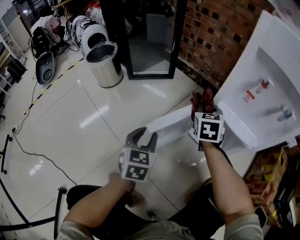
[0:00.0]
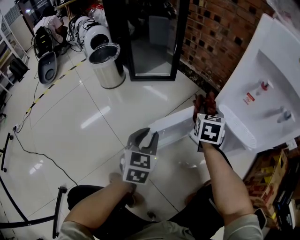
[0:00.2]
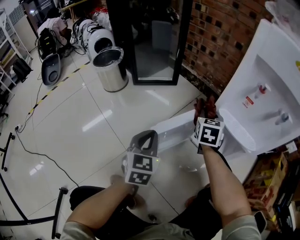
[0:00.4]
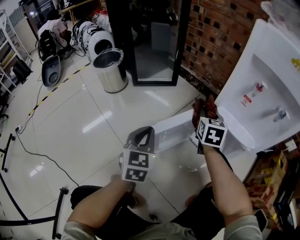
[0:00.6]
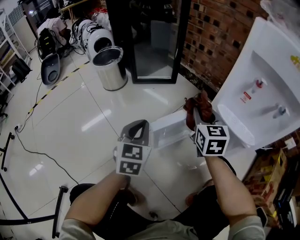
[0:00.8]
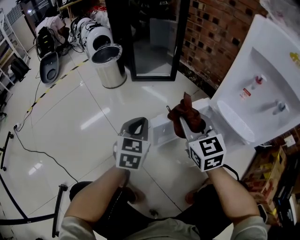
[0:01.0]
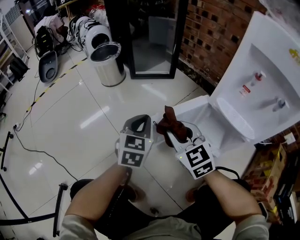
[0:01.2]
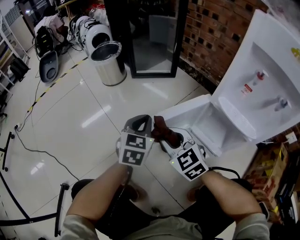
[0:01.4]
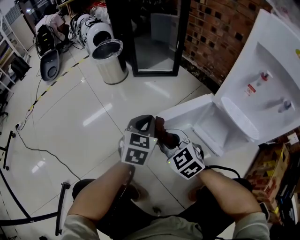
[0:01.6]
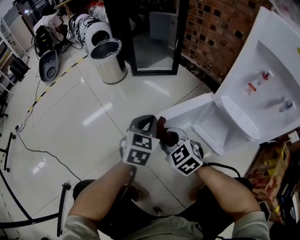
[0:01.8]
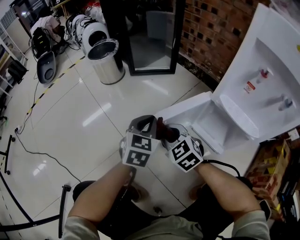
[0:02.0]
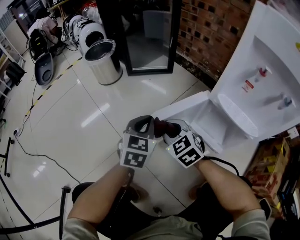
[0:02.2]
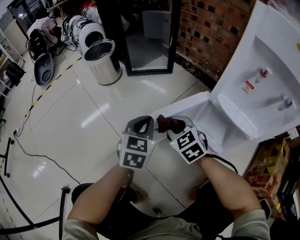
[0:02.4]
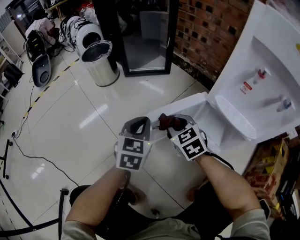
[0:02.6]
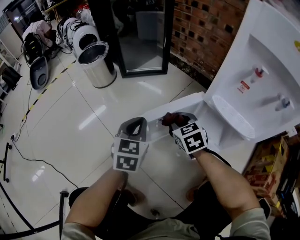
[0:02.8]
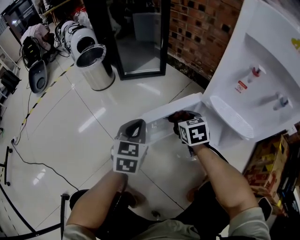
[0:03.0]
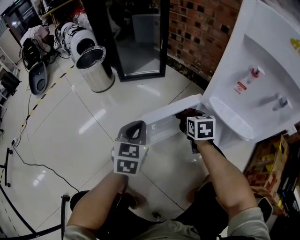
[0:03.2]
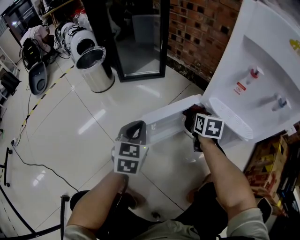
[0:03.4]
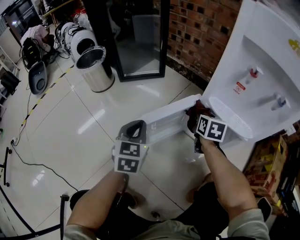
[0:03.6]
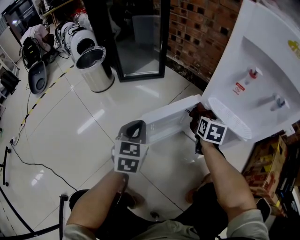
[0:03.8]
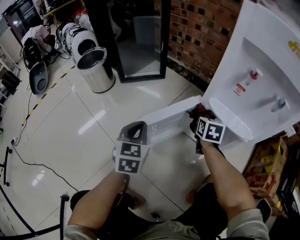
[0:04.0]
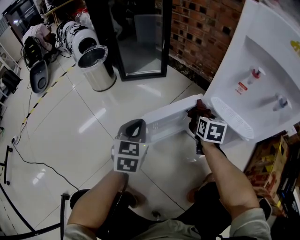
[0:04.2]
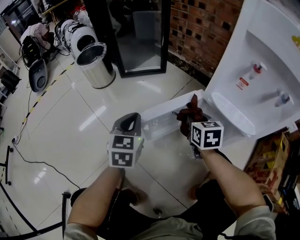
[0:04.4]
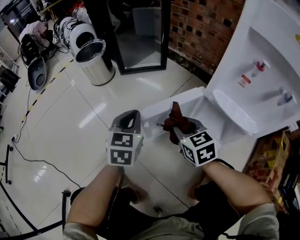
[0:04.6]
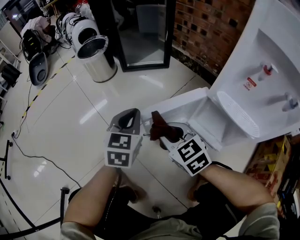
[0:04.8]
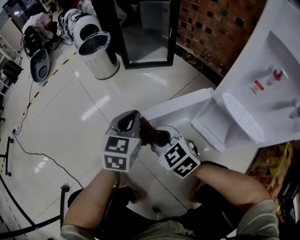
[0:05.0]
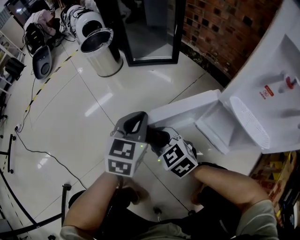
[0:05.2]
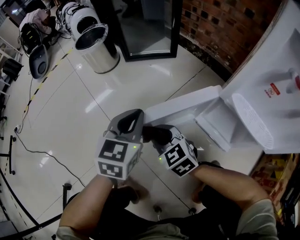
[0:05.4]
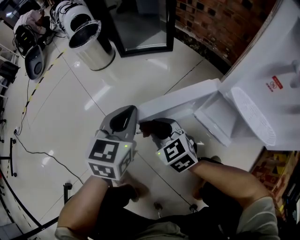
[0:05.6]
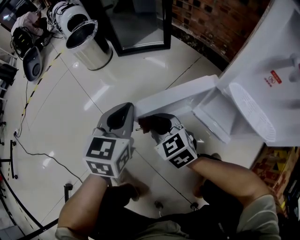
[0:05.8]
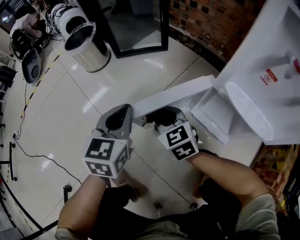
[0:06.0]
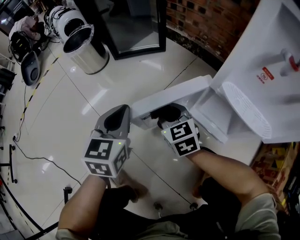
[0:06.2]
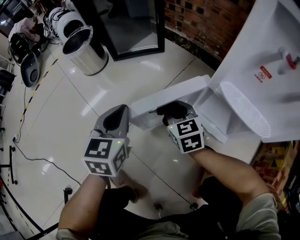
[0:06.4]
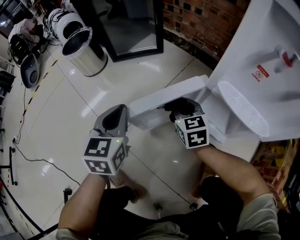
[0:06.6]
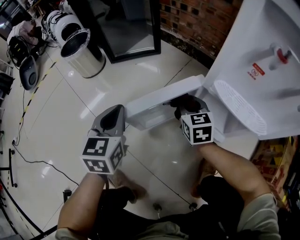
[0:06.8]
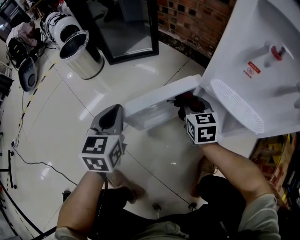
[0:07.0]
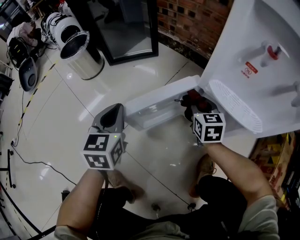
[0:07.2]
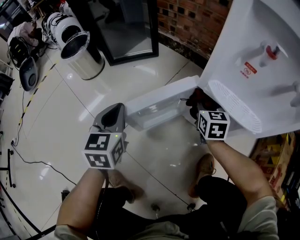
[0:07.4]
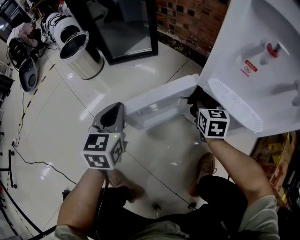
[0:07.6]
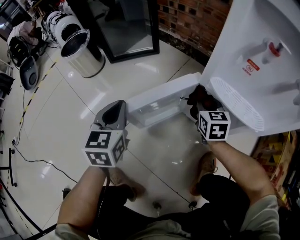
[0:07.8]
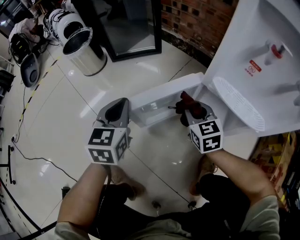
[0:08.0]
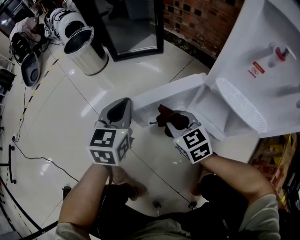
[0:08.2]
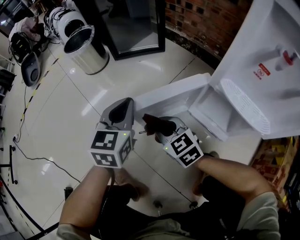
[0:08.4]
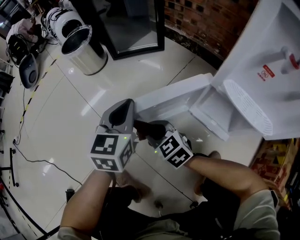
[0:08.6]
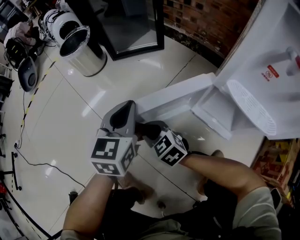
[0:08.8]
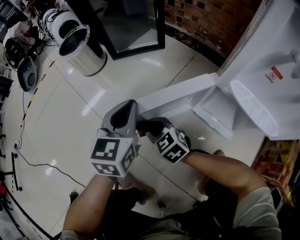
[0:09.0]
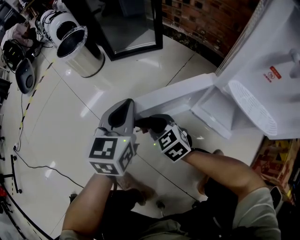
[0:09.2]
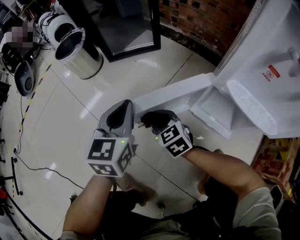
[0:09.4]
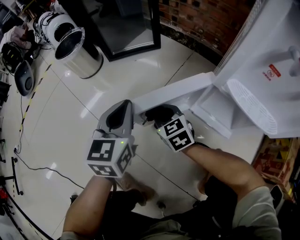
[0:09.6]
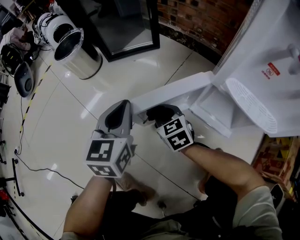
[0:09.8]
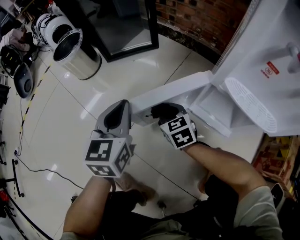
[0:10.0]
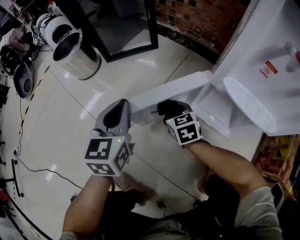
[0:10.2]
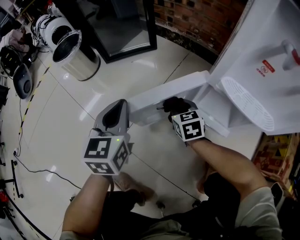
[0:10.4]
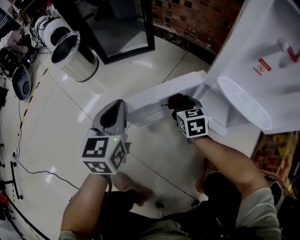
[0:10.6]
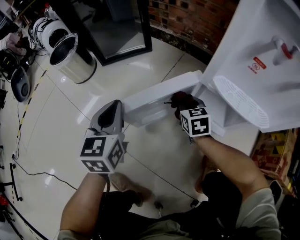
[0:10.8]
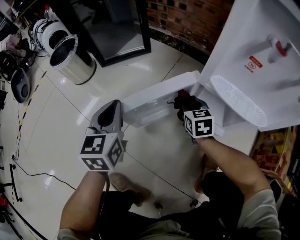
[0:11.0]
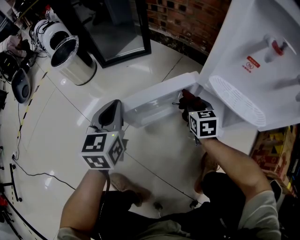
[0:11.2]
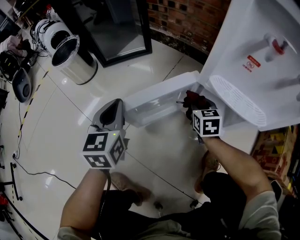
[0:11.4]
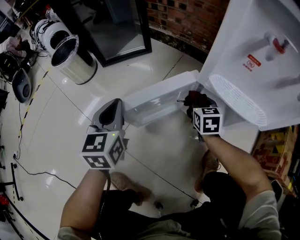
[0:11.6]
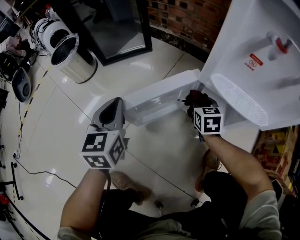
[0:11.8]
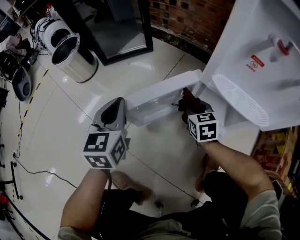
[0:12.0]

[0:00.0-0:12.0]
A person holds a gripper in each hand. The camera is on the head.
0:00.0 to 0:01.6: The right gripper ends up approximately 25 cm from where it was, and turns by some 50 degrees. Meanwhile the left gripper closes its fingers.
0:01.6 to 0:03.0: The right gripper goes roughly 20 cm to the right and forward, and swivels roughly 40 degrees.
0:03.0 to 0:04.4: The right gripper travels to the right and back again, some 10 cm each way.
0:04.4 to 0:06.0: The right gripper goes approximately 15 cm to the left, and swivels about 30 degrees.
0:06.0 to 0:07.6: The right gripper travels to the right by approximately 25 cm, and rotates approximately 40 degrees.
0:07.6 to 0:09.0: The right gripper travels to the left by roughly 30 cm, and rotates roughly 50 degrees.
0:09.0 to 0:10.4: The right gripper goes approximately 15 cm to the right, and turns by some 30 degrees.
0:10.4 to 0:12.0: The right gripper is displaced to the right by roughly 10 cm.

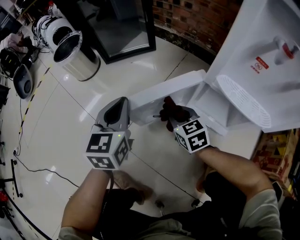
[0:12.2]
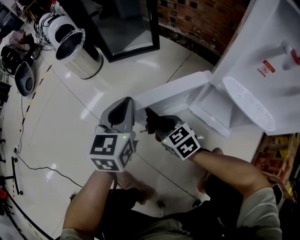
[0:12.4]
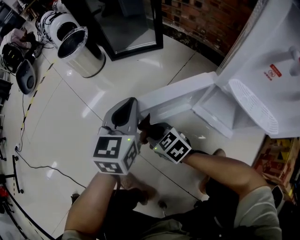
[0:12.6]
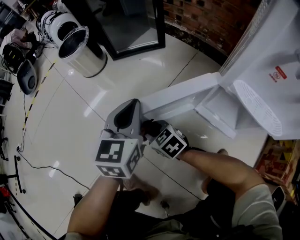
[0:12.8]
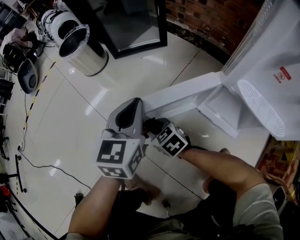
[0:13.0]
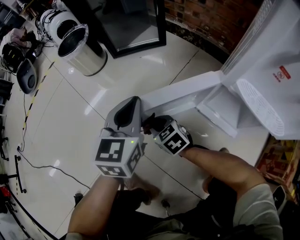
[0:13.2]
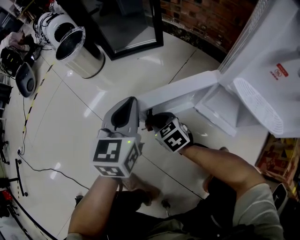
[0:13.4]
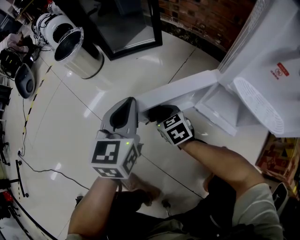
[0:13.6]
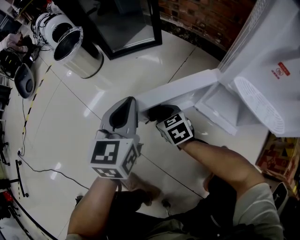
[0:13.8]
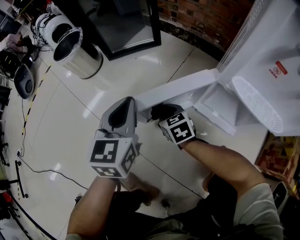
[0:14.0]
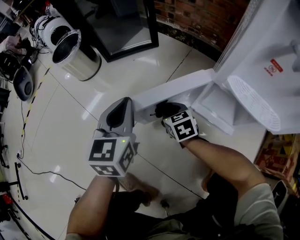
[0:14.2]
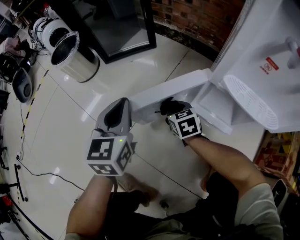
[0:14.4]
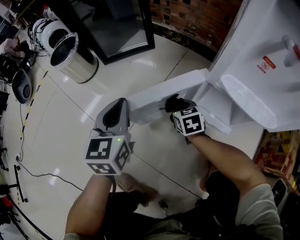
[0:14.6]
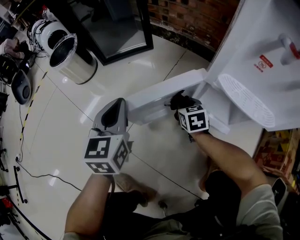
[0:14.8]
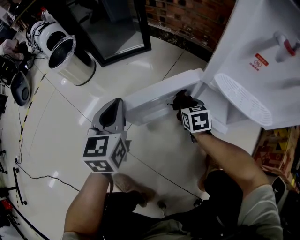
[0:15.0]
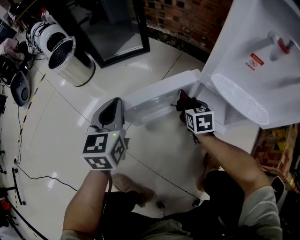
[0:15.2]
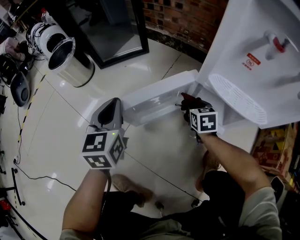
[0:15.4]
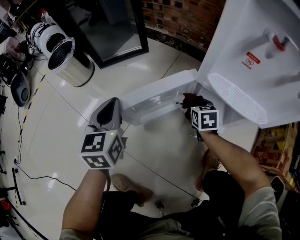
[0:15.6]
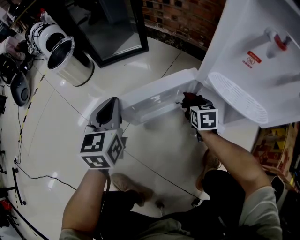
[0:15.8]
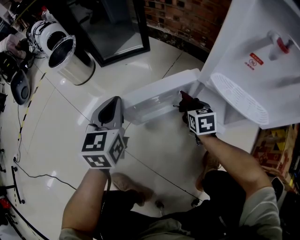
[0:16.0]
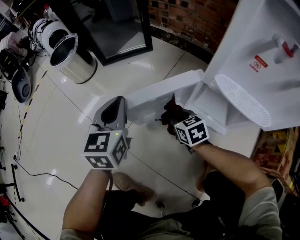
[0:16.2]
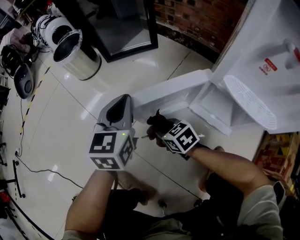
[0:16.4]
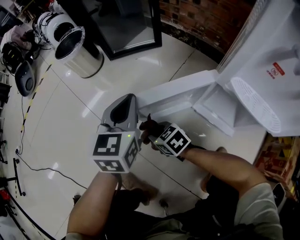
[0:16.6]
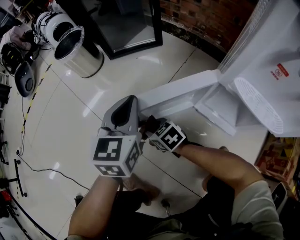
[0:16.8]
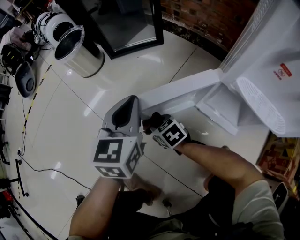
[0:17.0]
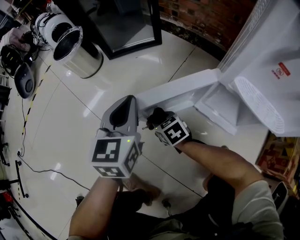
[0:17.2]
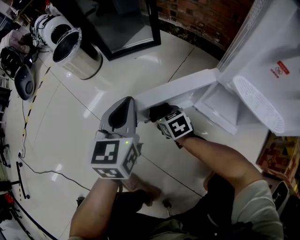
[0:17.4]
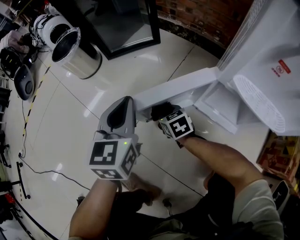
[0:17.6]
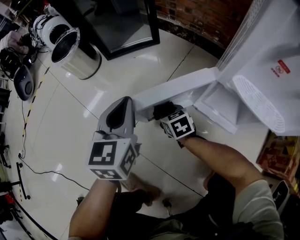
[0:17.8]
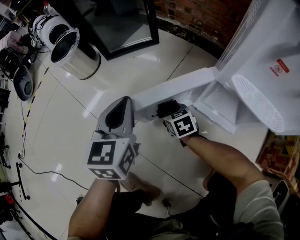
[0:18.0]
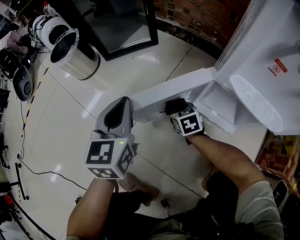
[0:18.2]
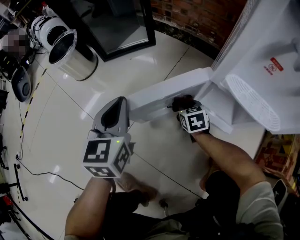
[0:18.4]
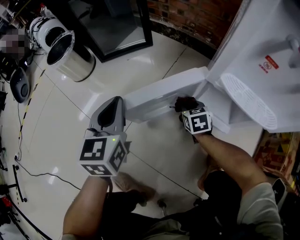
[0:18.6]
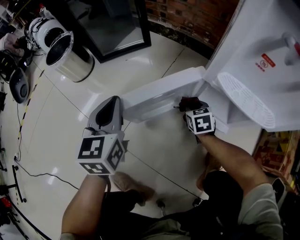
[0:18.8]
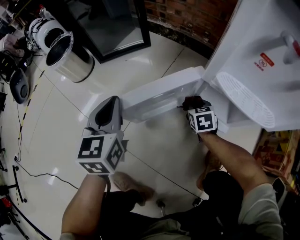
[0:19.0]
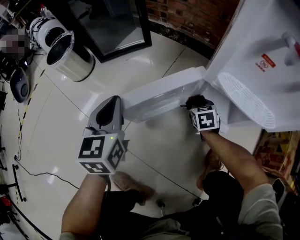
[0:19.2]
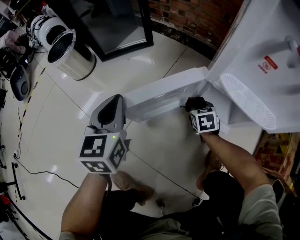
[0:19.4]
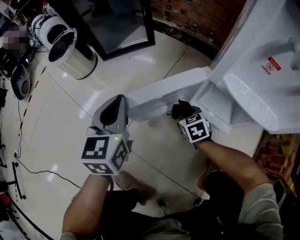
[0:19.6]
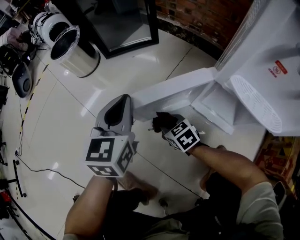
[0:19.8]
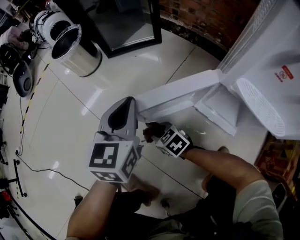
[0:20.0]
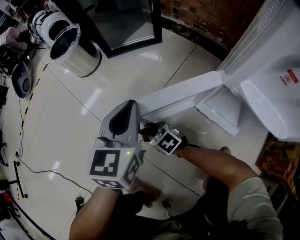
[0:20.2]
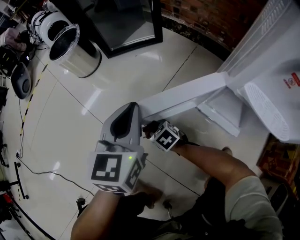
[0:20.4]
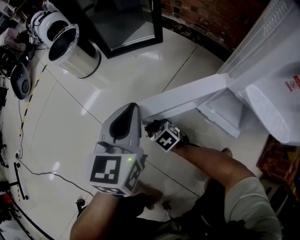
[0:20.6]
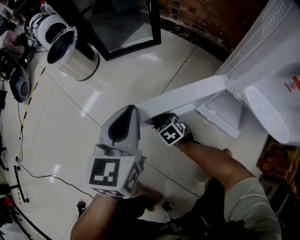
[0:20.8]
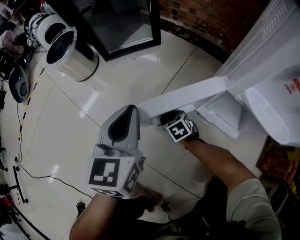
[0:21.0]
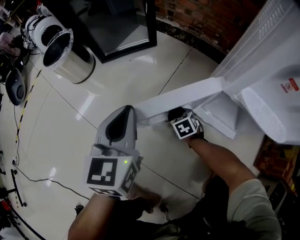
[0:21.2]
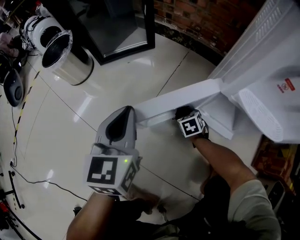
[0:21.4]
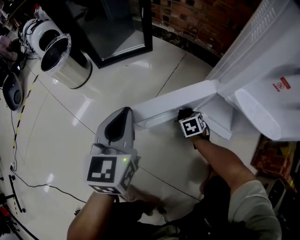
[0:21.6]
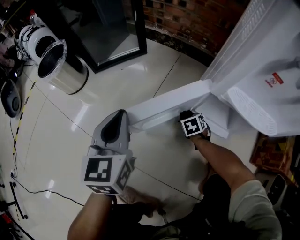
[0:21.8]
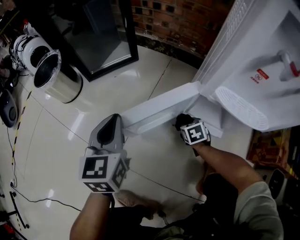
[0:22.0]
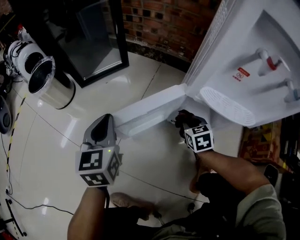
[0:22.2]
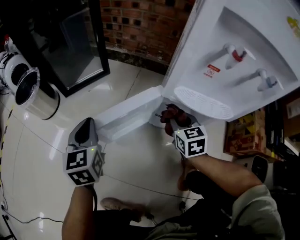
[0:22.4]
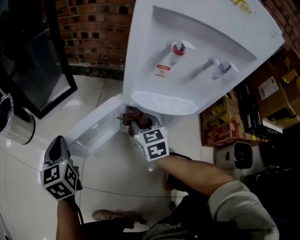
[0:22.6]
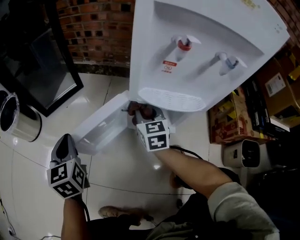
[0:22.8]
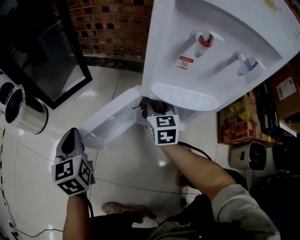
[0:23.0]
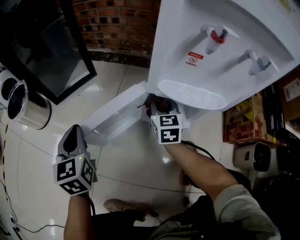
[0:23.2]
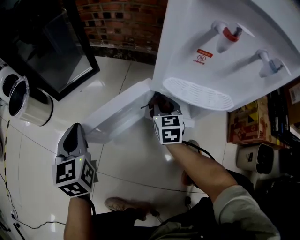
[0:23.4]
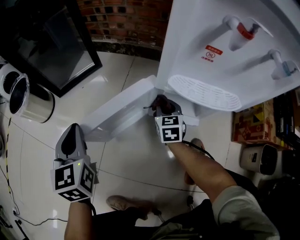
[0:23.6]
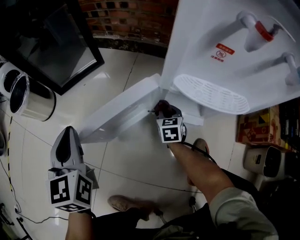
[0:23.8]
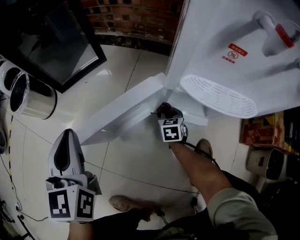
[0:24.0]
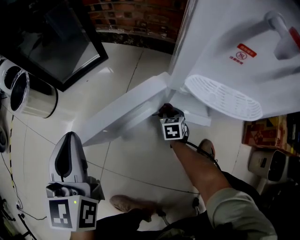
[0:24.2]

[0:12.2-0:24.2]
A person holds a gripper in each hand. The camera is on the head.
0:12.2 to 0:13.8: The right gripper moves to the left and downward, approximately 10 cm.
0:13.8 to 0:15.2: The right gripper goes roughly 20 cm to the right, and rotates about 30 degrees.
0:15.2 to 0:16.6: The right gripper changes place by approximately 25 cm, and swivels roughly 50 degrees.
0:16.6 to 0:18.2: The right gripper heads to the right and forward, covering about 15 cm, and turns by roughly 30 degrees.
0:18.2 to 0:19.8: The right gripper heads backward, covering roughly 5 cm, moves roughly 15 cm to the right and comes back, and changes its angle by approximately 20 degrees.
0:19.8 to 0:21.2: The right gripper ends up about 15 cm from where it was, and turns by roughly 30 degrees.
0:21.2 to 0:22.6: The right gripper travels upward and to the right by some 30 cm, and tips its fingers upward by roughly 30 degrees.
0:22.6 to 0:24.2: The right gripper goes about 25 cm downward, and rotates some 20 degrees. Meanwhile the left gripper heads upward, covering roughly 5 cm.
